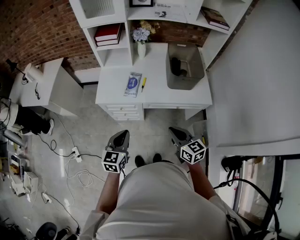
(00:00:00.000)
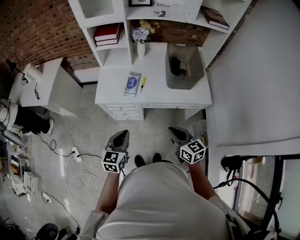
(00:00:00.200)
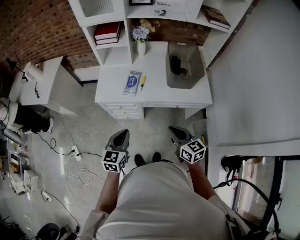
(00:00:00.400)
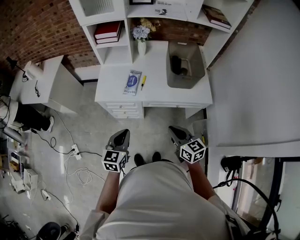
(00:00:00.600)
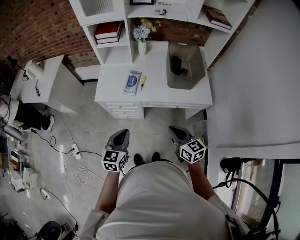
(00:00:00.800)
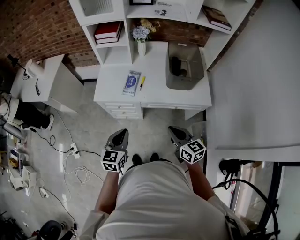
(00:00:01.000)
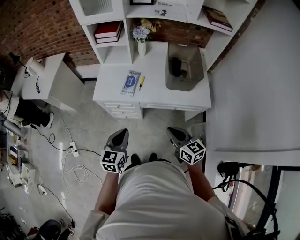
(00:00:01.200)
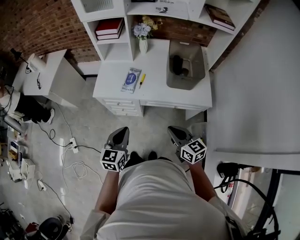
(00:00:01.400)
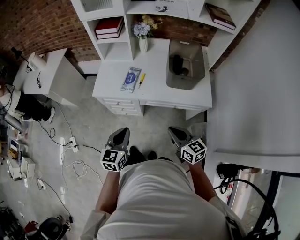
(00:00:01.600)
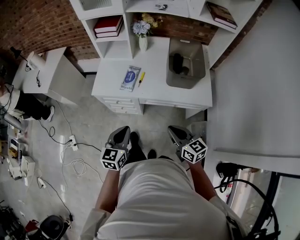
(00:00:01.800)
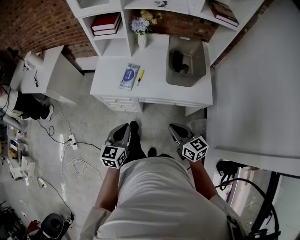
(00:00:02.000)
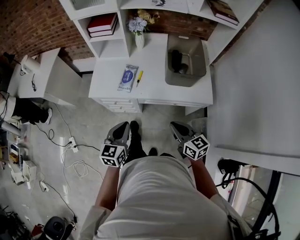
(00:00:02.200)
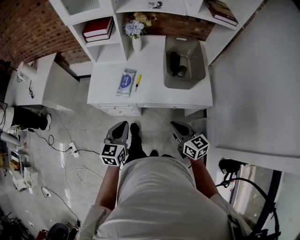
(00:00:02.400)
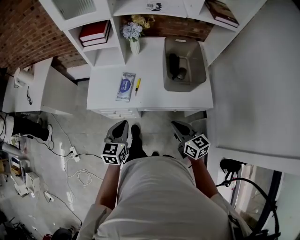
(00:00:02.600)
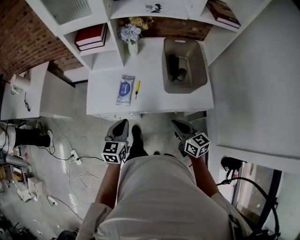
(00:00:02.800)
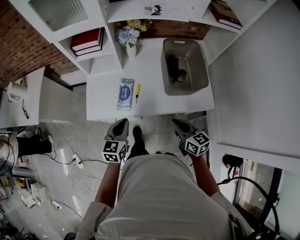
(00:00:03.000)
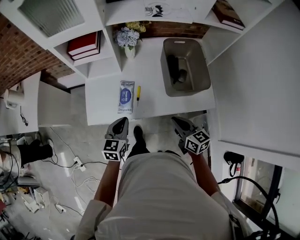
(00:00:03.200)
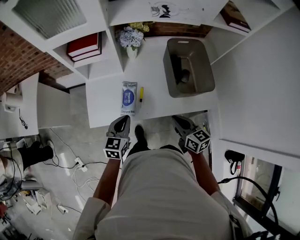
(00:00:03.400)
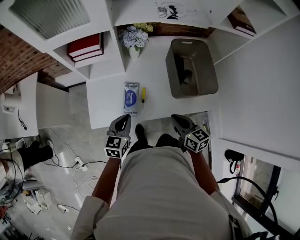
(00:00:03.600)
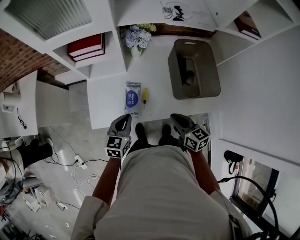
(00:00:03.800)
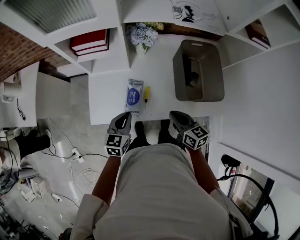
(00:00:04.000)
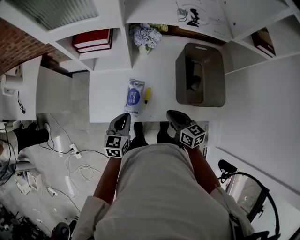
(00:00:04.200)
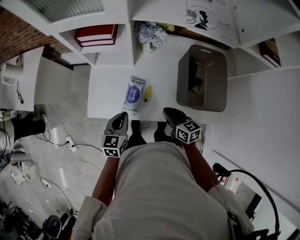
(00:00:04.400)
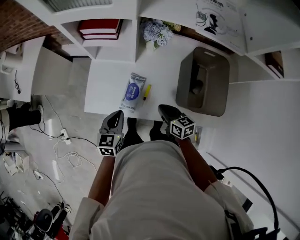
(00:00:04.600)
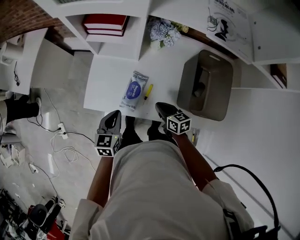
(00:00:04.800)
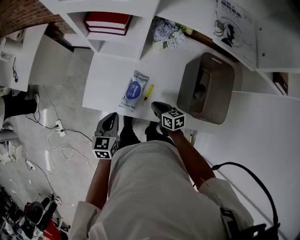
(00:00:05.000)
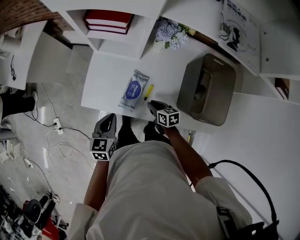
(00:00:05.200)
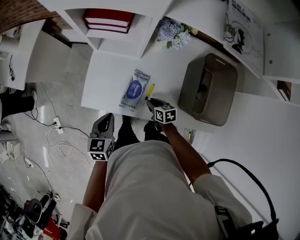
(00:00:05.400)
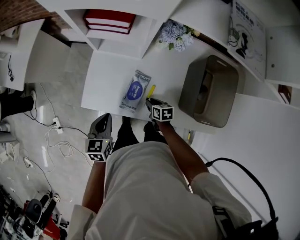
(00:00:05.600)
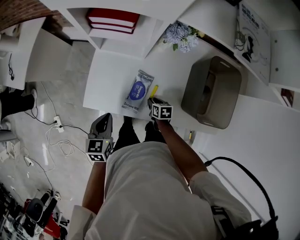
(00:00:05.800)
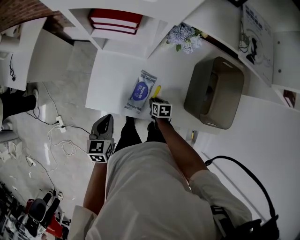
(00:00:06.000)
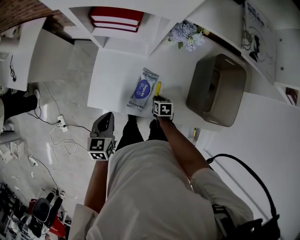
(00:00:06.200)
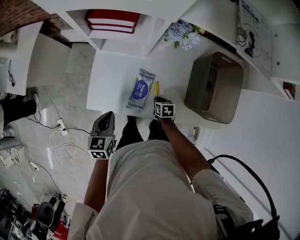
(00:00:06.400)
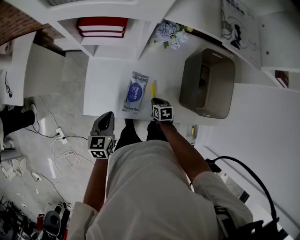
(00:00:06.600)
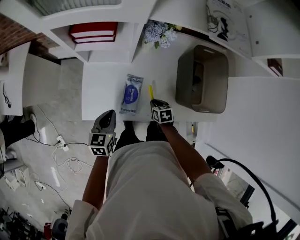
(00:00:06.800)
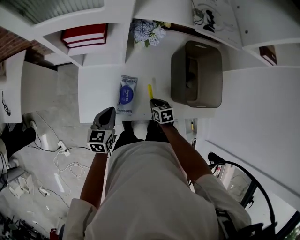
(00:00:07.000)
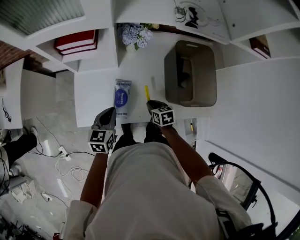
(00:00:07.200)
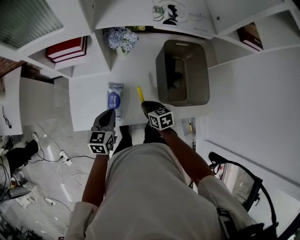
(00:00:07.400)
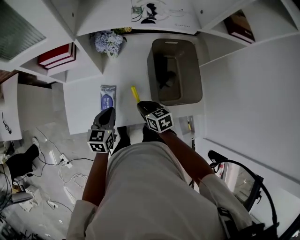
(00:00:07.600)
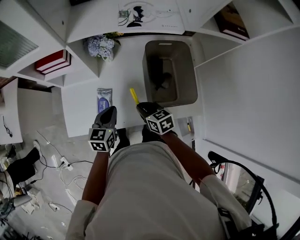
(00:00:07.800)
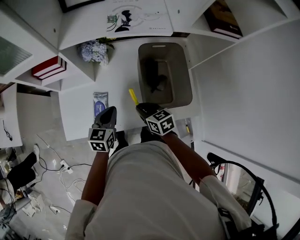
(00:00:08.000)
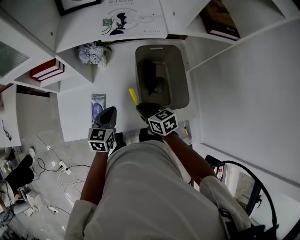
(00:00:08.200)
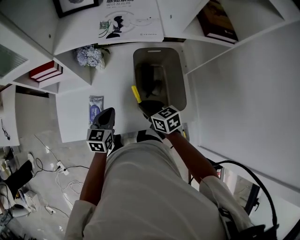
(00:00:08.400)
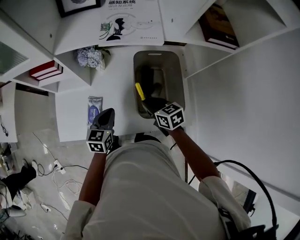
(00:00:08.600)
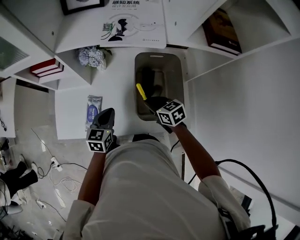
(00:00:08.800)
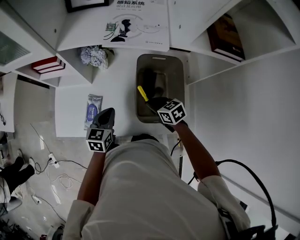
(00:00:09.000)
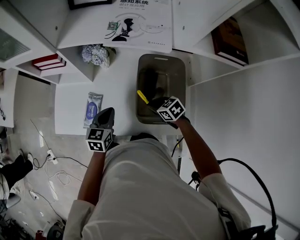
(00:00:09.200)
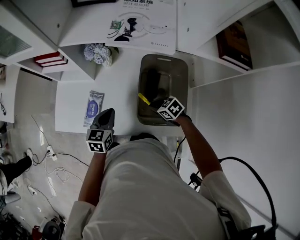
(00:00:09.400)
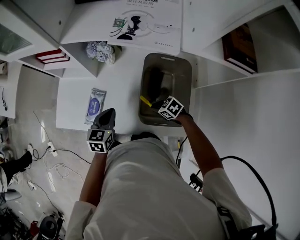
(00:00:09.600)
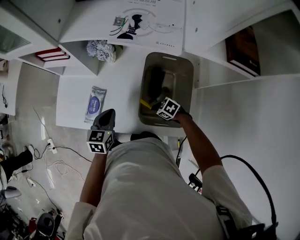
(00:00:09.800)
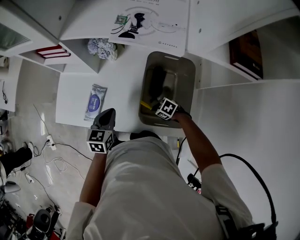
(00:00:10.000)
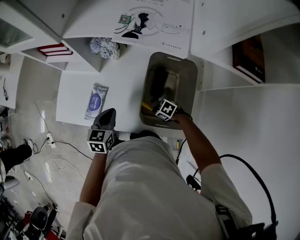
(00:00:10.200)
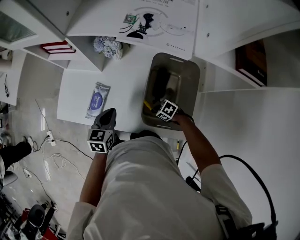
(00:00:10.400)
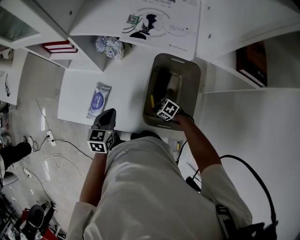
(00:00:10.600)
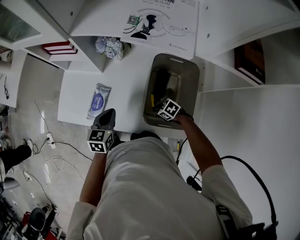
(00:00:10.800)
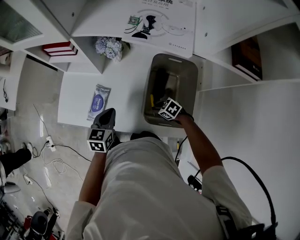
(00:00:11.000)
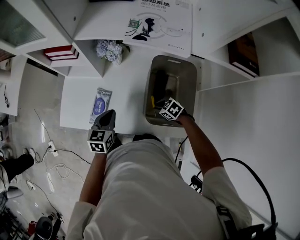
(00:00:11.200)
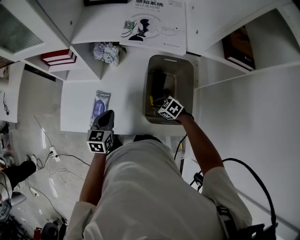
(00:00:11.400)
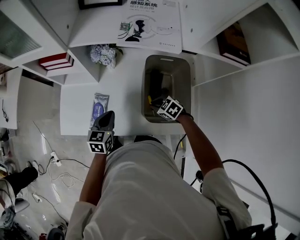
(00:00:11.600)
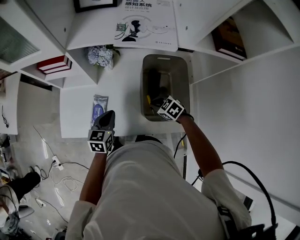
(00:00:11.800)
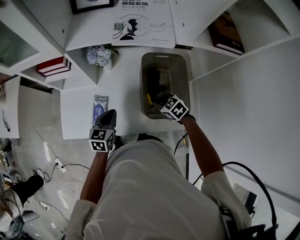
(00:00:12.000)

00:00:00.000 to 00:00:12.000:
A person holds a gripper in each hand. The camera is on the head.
00:00:00.000 to 00:00:01.600: The grippers both shift to the right by some 5 cm.
00:00:01.600 to 00:00:03.000: Both grippers travel together forward, roughly 20 cm.
00:00:03.000 to 00:00:04.400: The right gripper goes roughly 20 cm forward, downward and to the left, while the left gripper shifts about 10 cm forward and downward.
00:00:04.400 to 00:00:06.000: The right gripper is displaced downward by approximately 25 cm, points its fingers some 40 degrees further downward, and opens its fingers. Meanwhile the left gripper is displaced to the left by roughly 10 cm.
00:00:06.000 to 00:00:07.600: The left gripper is displaced to the right by about 20 cm, and swivels roughly 20 degrees. Meanwhile the right gripper shifts some 20 cm upward and to the right, and swivels some 20 degrees.
00:00:07.600 to 00:00:09.000: The two grippers go some 15 cm to the right.
00:00:09.000 to 00:00:10.400: The right gripper heads downward, covering approximately 15 cm, and swivels about 40 degrees.
00:00:10.400 to 00:00:12.000: The right gripper moves upward, approximately 15 cm, and swivels approximately 30 degrees.

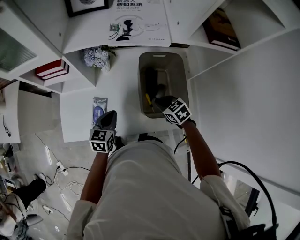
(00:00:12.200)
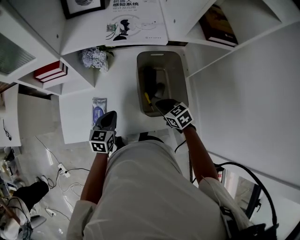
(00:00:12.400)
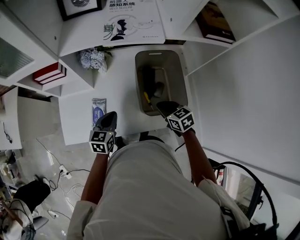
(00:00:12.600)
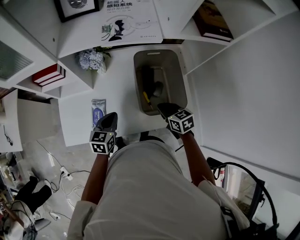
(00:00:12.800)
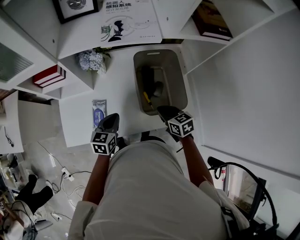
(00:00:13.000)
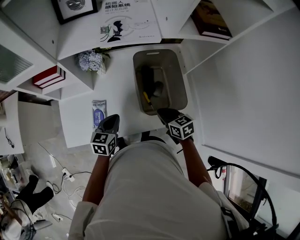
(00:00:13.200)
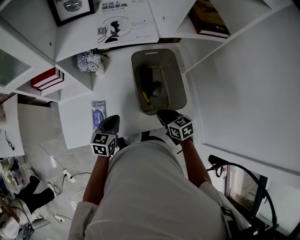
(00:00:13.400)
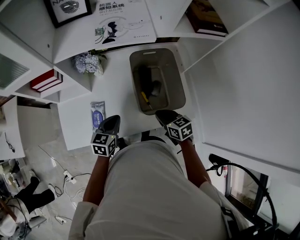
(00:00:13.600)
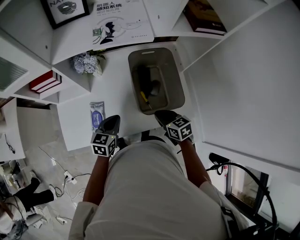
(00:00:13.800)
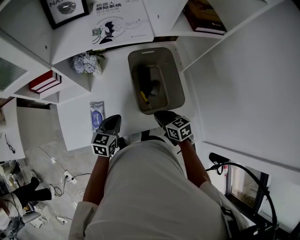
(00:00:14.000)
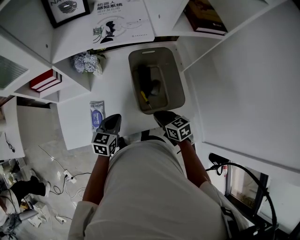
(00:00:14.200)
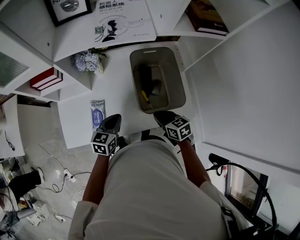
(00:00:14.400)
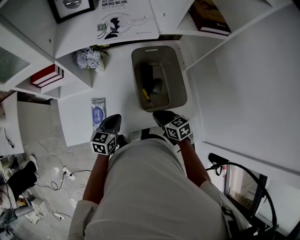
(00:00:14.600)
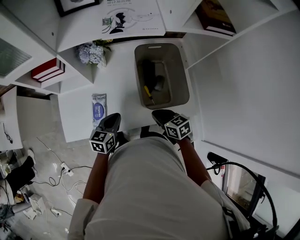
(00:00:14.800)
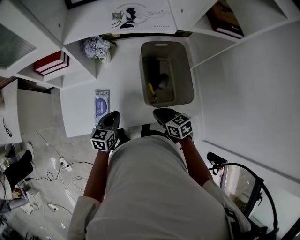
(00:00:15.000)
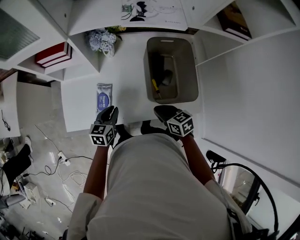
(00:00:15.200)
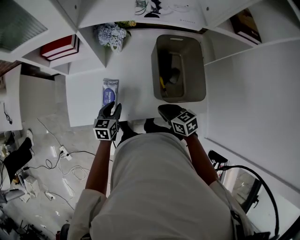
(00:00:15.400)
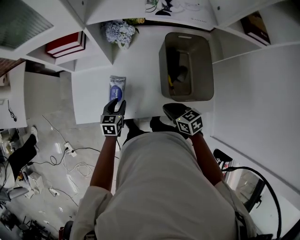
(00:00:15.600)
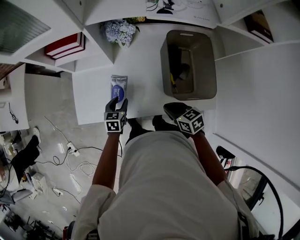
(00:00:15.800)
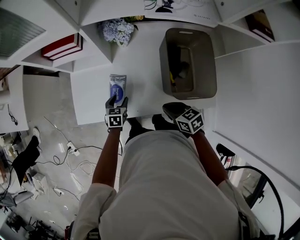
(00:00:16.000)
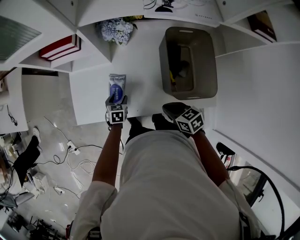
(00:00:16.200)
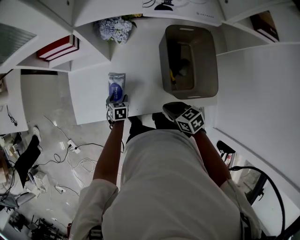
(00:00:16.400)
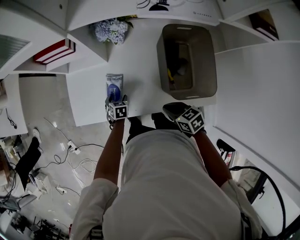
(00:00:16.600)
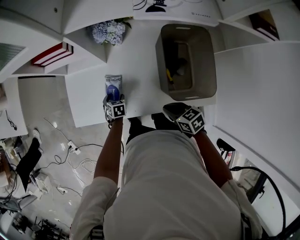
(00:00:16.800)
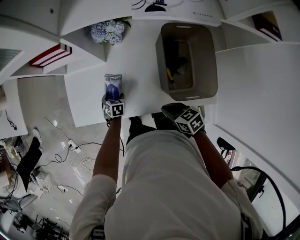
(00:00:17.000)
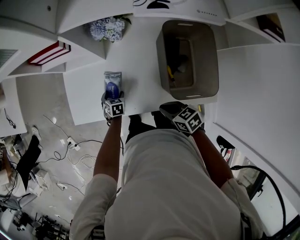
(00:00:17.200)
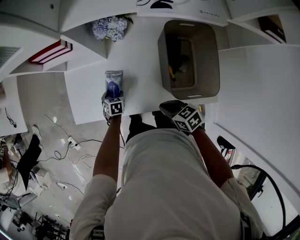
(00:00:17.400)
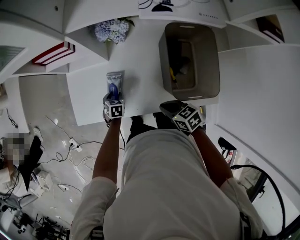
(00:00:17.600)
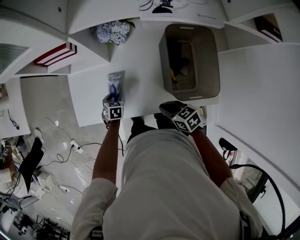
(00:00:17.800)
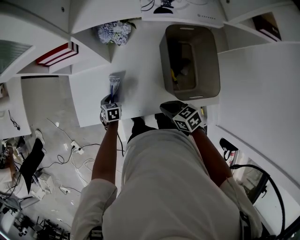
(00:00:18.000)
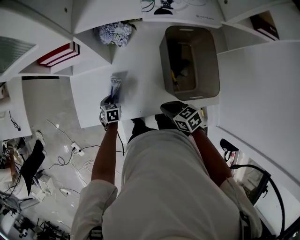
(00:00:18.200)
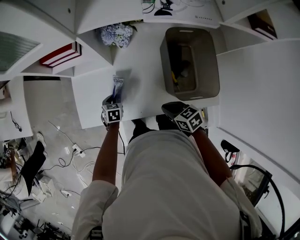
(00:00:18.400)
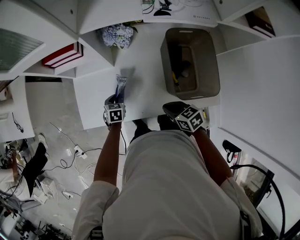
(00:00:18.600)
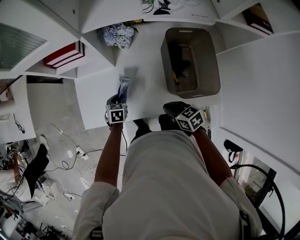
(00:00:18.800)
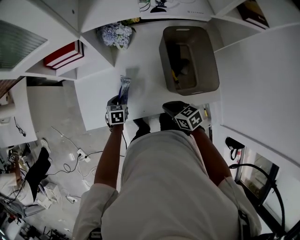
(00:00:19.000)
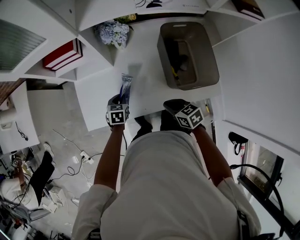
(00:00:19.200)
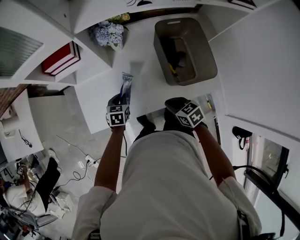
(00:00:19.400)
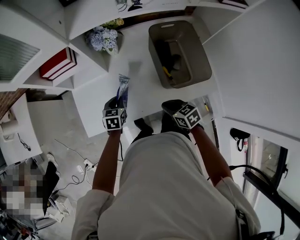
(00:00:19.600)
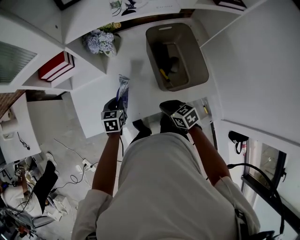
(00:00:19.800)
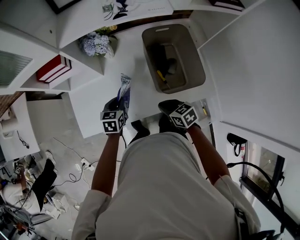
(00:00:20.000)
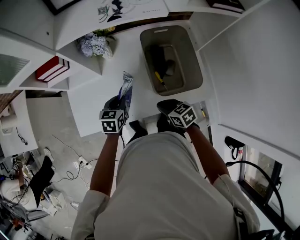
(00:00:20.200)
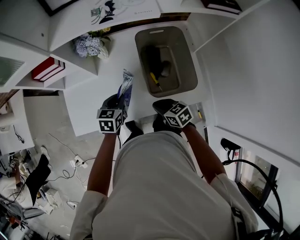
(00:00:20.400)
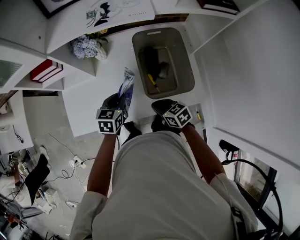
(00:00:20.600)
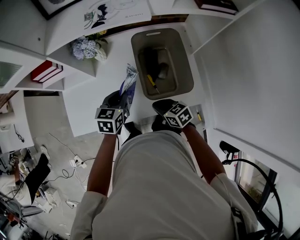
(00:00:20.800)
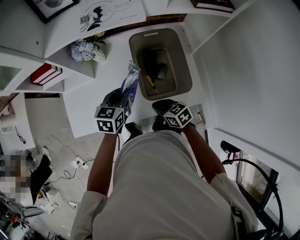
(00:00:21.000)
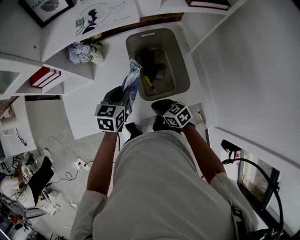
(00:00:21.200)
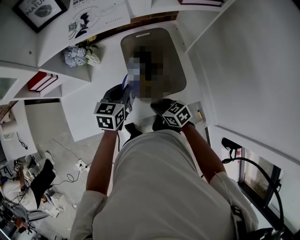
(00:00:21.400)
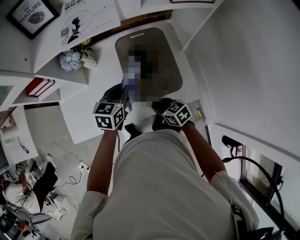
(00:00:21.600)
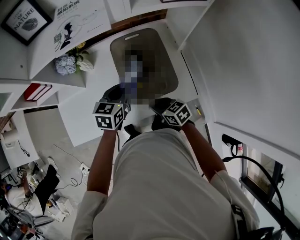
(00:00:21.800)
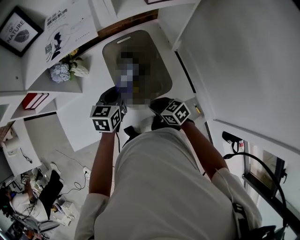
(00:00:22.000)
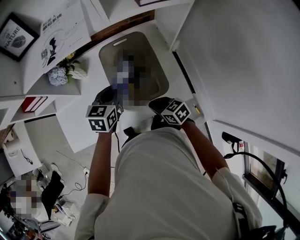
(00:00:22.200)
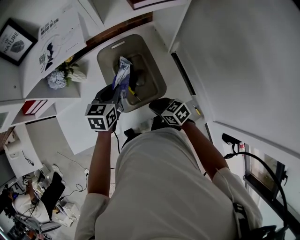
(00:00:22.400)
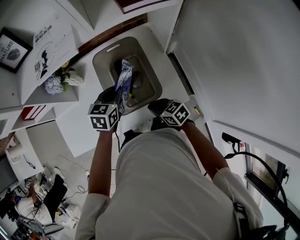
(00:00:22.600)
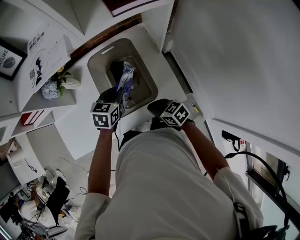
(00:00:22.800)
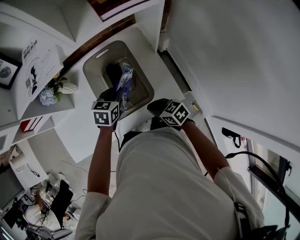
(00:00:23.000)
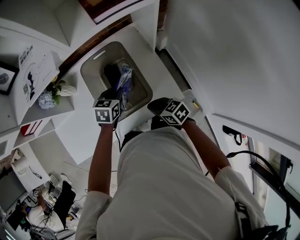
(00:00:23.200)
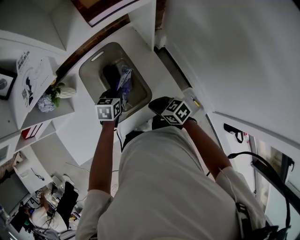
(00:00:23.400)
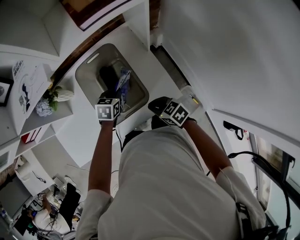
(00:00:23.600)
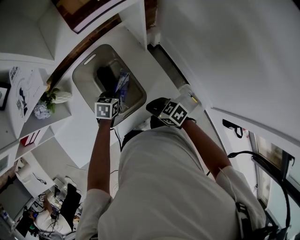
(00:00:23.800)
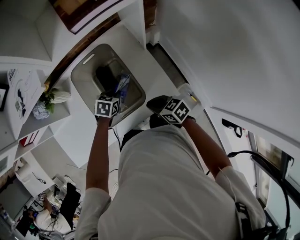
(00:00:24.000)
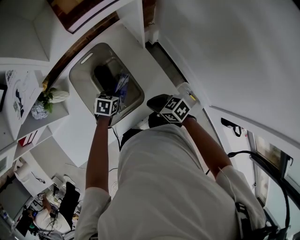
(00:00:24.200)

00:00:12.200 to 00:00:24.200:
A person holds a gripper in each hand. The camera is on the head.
00:00:12.200 to 00:00:13.800: The right gripper moves backward, roughly 10 cm, and rotates some 30 degrees.
00:00:13.800 to 00:00:15.200: The left gripper goes roughly 10 cm to the left and downward. Meanwhile the right gripper shifts approximately 5 cm to the left.
00:00:15.200 to 00:00:16.600: The right gripper changes place by roughly 5 cm. The left gripper moves downward, some 20 cm, tips its fingers downward by roughly 30 degrees, and opens its fingers.
00:00:16.600 to 00:00:18.200: The left gripper shifts by approximately 5 cm, and closes up.
00:00:18.200 to 00:00:19.800: The left gripper is displaced upward and to the right by some 15 cm, and rotates about 20 degrees.
00:00:19.800 to 00:00:21.200: The right gripper goes approximately 10 cm to the right. The left gripper shifts approximately 20 cm to the right and upward.
00:00:21.200 to 00:00:22.600: The grippers both shift to the right by some 10 cm.
00:00:22.600 to 00:00:24.200: The left gripper heads downward and to the right, covering some 20 cm, and changes its angle by approximately 30 degrees, while the right gripper goes some 10 cm to the right.
